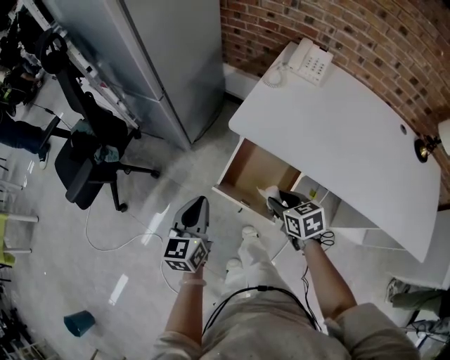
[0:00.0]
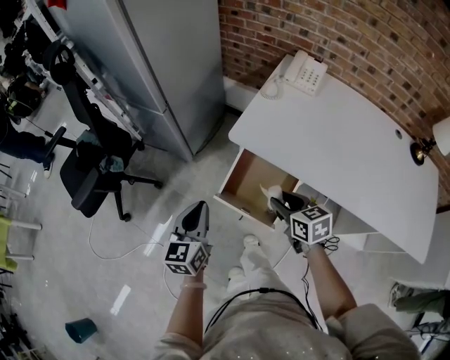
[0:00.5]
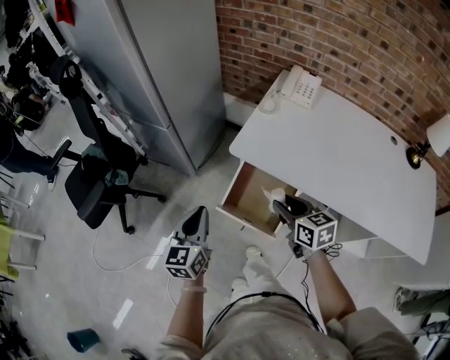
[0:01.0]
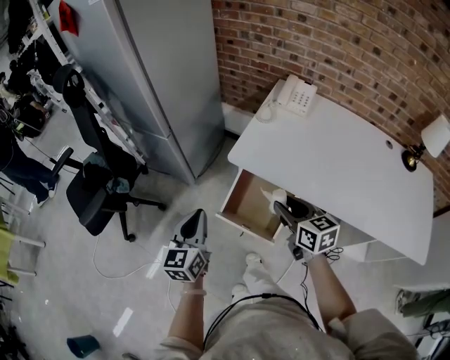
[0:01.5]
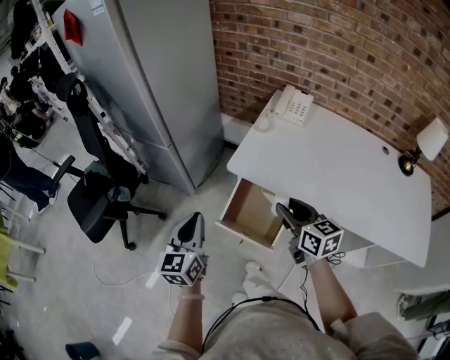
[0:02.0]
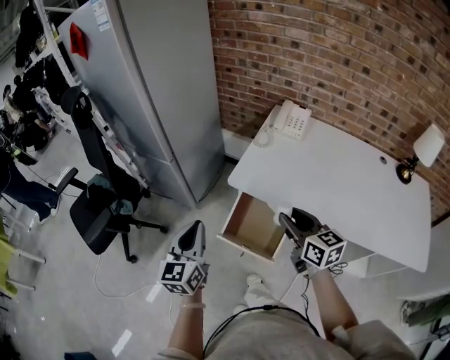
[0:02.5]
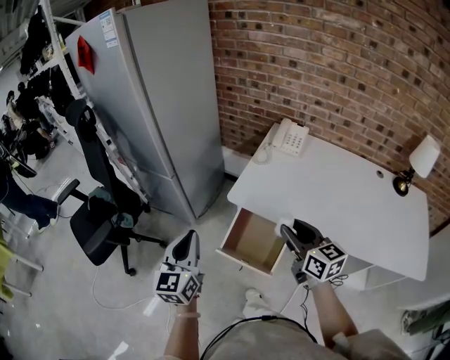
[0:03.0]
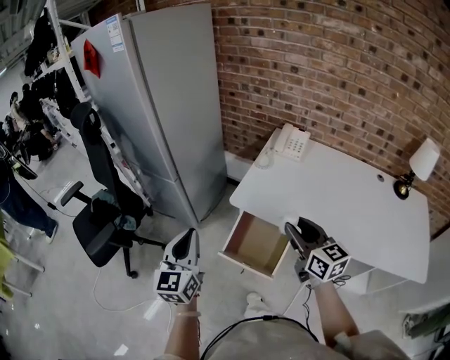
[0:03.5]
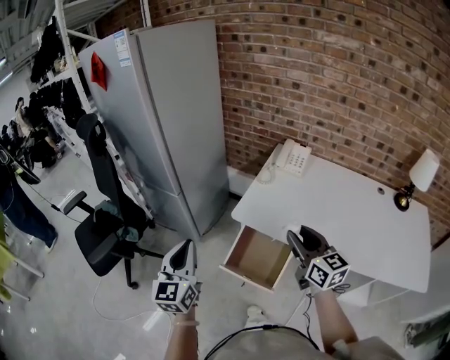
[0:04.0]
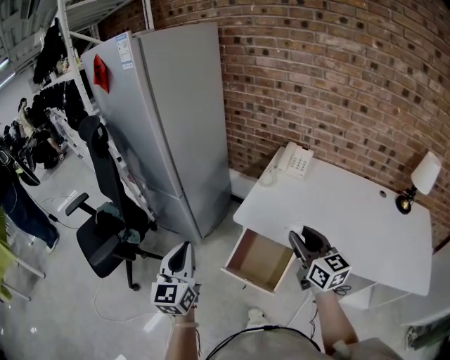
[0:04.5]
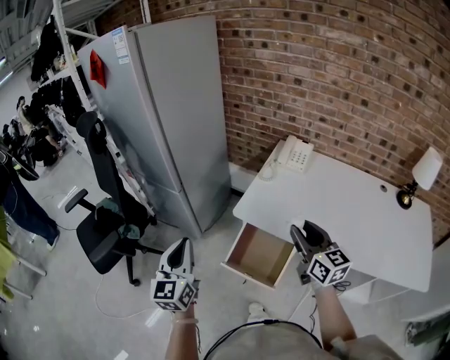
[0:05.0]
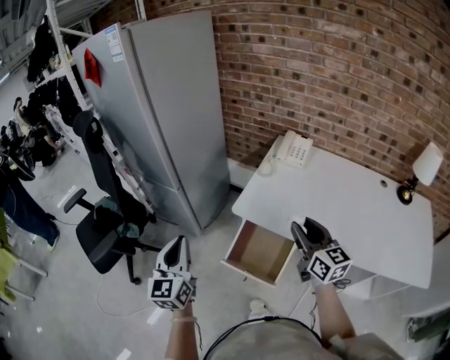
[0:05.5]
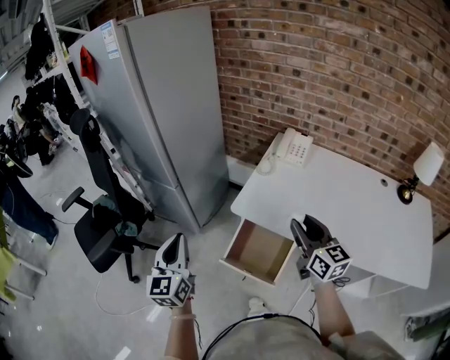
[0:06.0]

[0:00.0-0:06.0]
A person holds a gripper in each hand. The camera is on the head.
0:00.0 to 0:02.0: The left gripper moves upward, about 10 cm. Meanwhile the right gripper is displaced upward by approximately 20 cm, and turns by approximately 30 degrees.
0:02.0 to 0:04.0: The grippers both shift upward by about 10 cm.
0:04.0 to 0:06.0: The grippers make only small movements.

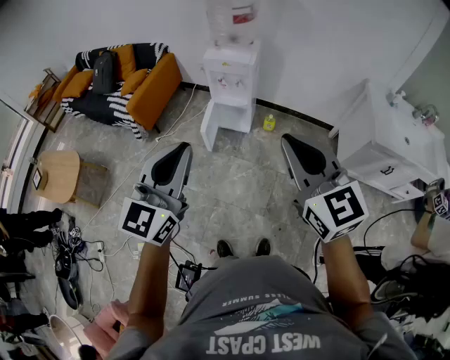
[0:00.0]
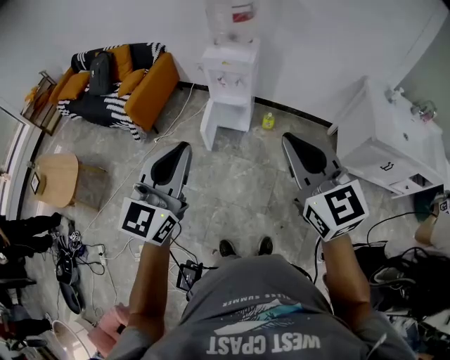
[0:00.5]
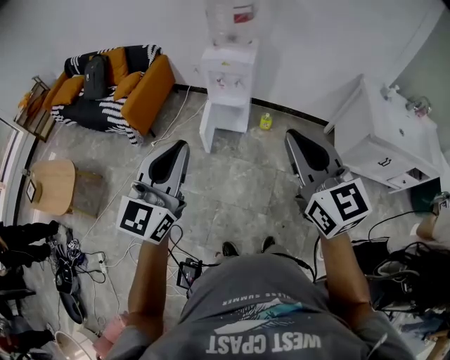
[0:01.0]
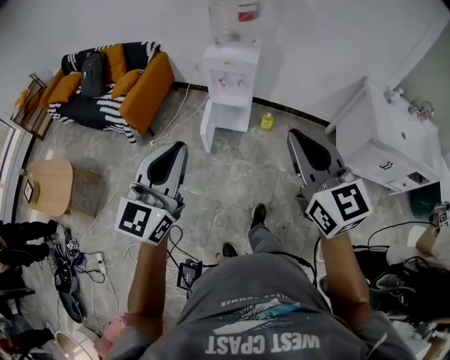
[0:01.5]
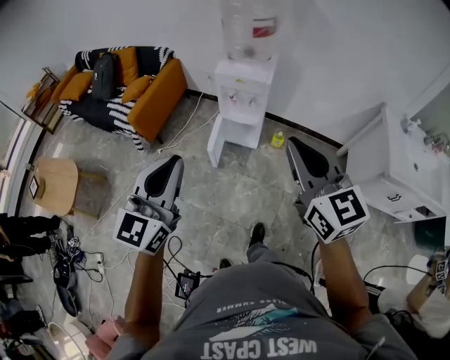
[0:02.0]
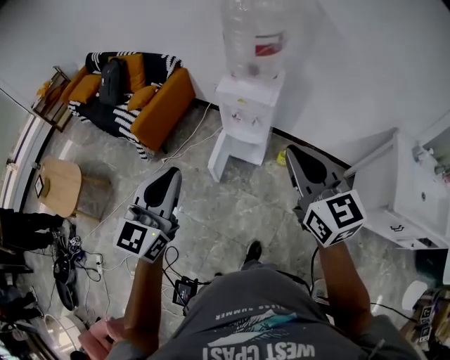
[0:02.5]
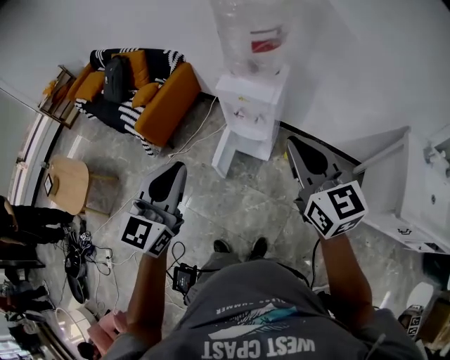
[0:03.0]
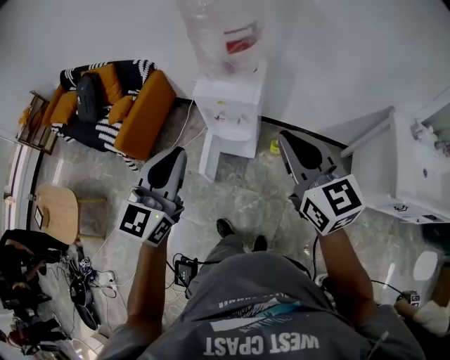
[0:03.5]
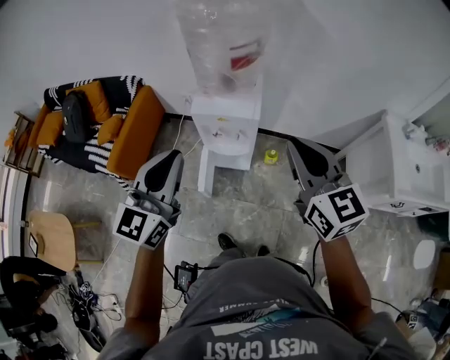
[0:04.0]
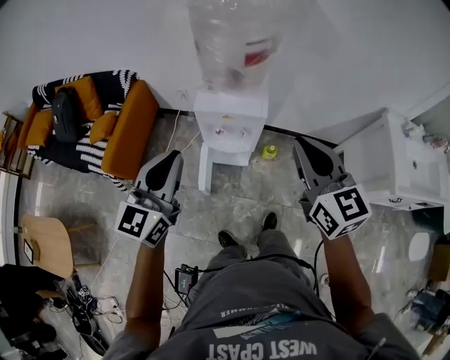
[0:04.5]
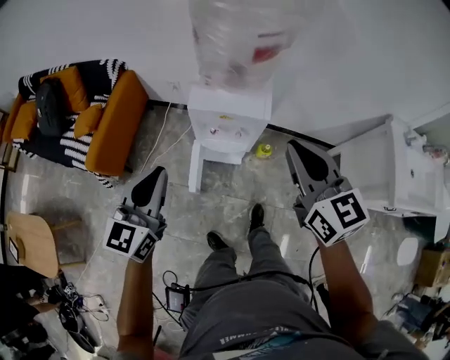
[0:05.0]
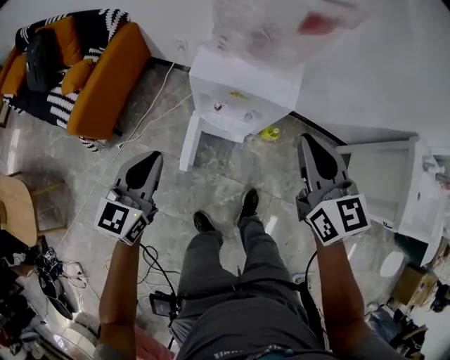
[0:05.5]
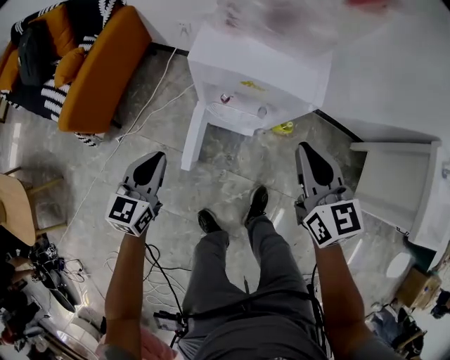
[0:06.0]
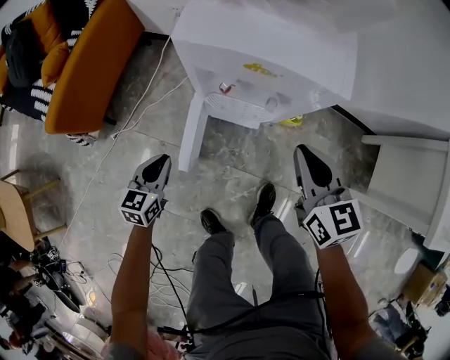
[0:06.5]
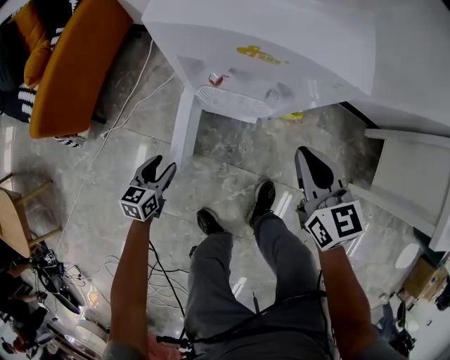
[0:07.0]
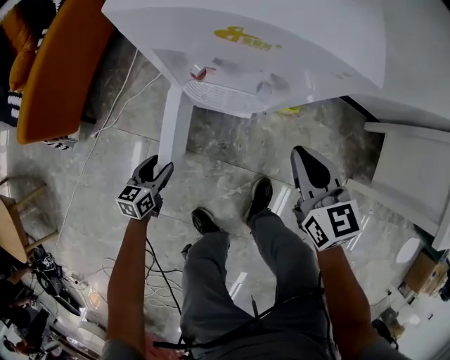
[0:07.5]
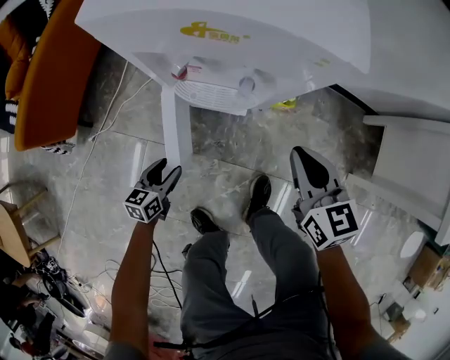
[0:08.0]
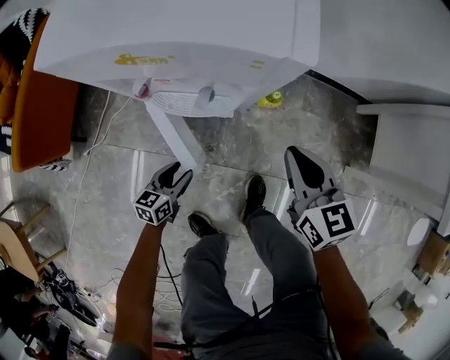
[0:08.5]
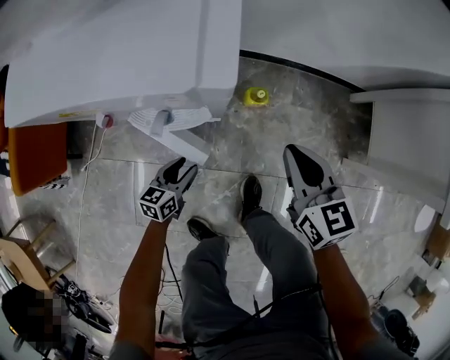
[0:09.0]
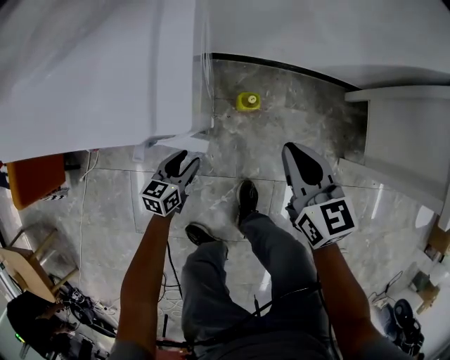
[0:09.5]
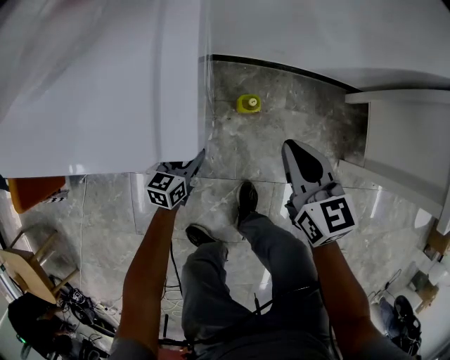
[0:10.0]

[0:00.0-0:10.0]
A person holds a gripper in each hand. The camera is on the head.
0:00.0 to 0:02.0: The right gripper is displaced forward by about 15 cm, while the left gripper heads forward and to the left, covering about 15 cm.
0:02.0 to 0:04.0: The two grippers go roughly 25 cm forward.
0:04.0 to 0:06.0: The right gripper goes about 35 cm downward and forward, while the left gripper heads downward, covering about 40 cm, and swivels approximately 30 degrees.
0:06.0 to 0:08.0: The left gripper shifts roughly 35 cm downward, swivels some 20 degrees, and opens, while the right gripper is displaced downward by approximately 20 cm.
0:08.0 to 0:10.0: The left gripper shifts some 25 cm forward and to the right, while the right gripper moves to the right and forward, some 15 cm.

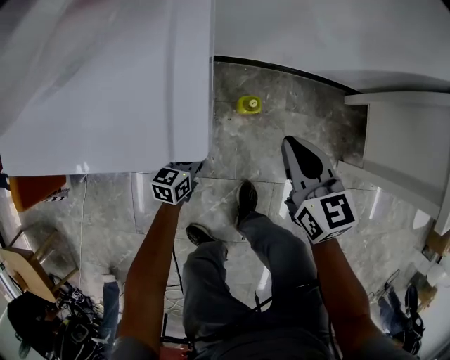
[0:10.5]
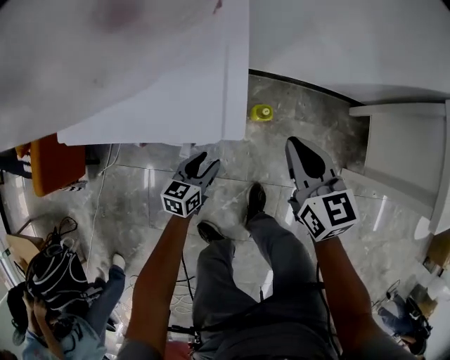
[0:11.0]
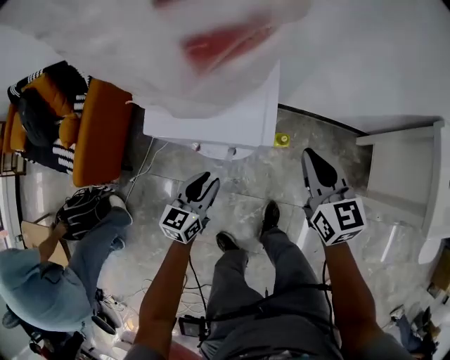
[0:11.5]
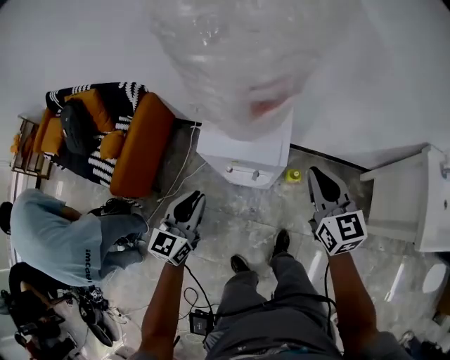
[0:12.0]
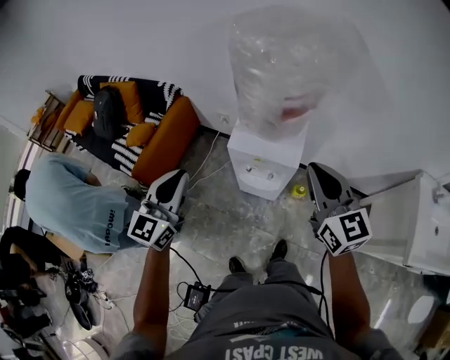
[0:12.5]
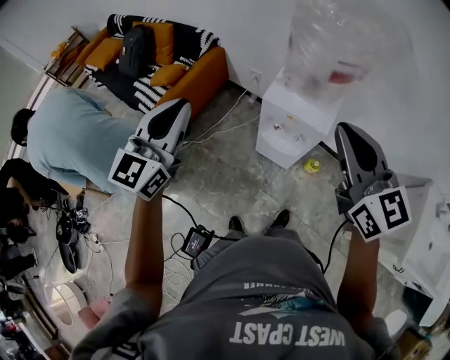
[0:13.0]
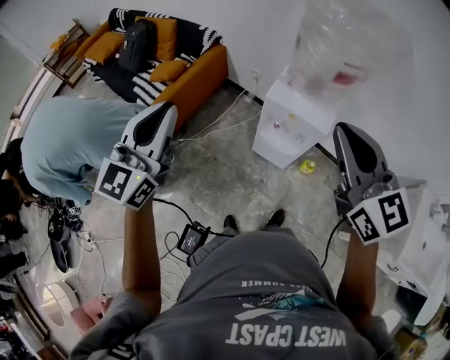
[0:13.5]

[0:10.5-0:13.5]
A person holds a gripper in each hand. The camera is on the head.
0:10.5 to 0:12.0: The grippers both shift upward by about 40 cm. The left gripper rotates some 30 degrees, and closes.
0:12.0 to 0:13.5: The grippers both shift upward, to the left and backward by about 35 cm. The right gripper swivels approximately 30 degrees. Meanwhile the left gripper turns by some 30 degrees.

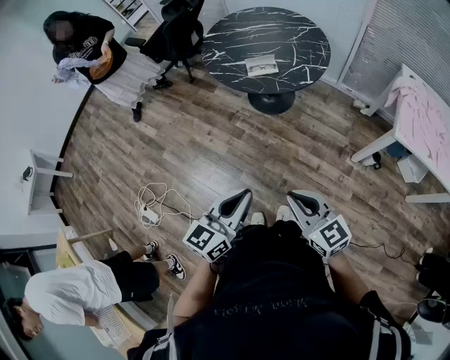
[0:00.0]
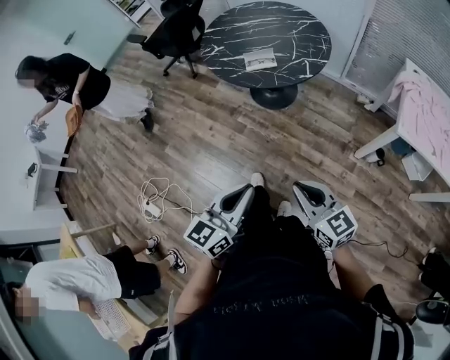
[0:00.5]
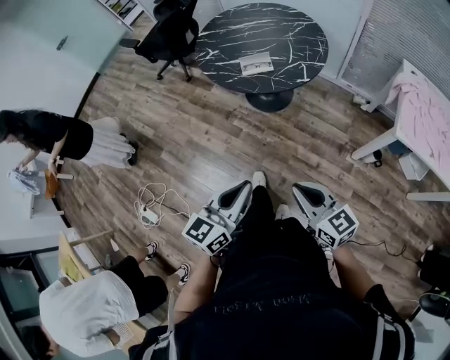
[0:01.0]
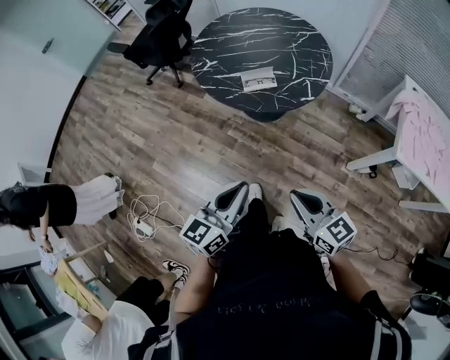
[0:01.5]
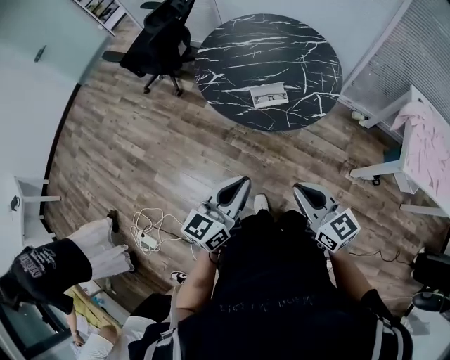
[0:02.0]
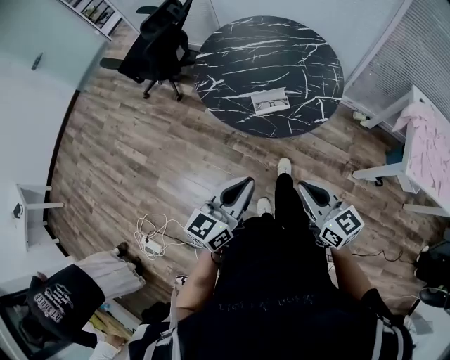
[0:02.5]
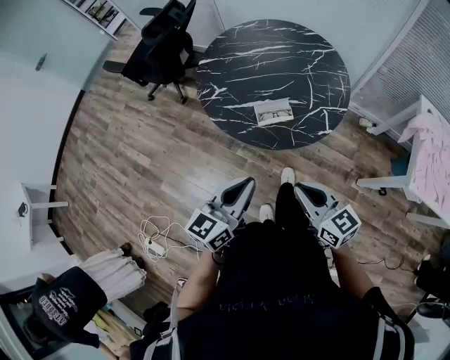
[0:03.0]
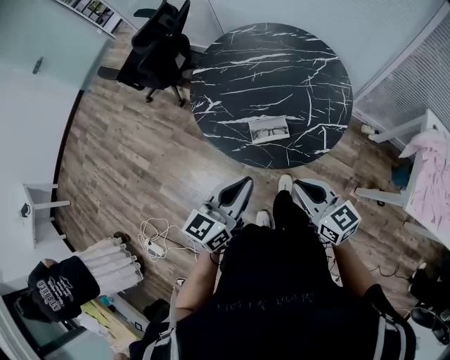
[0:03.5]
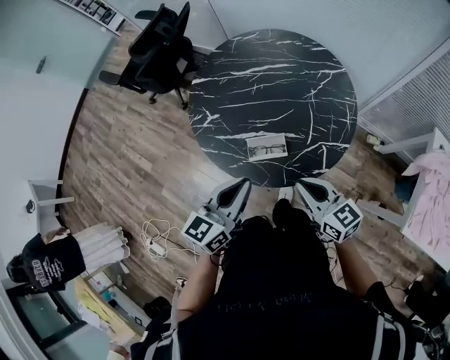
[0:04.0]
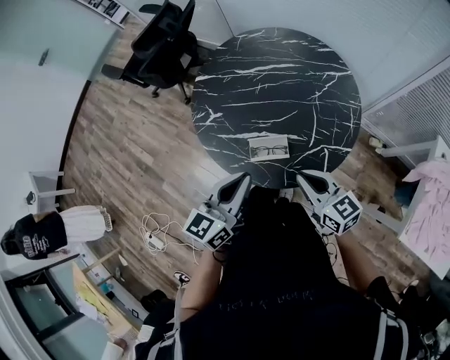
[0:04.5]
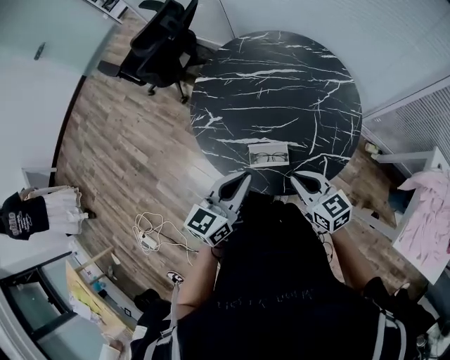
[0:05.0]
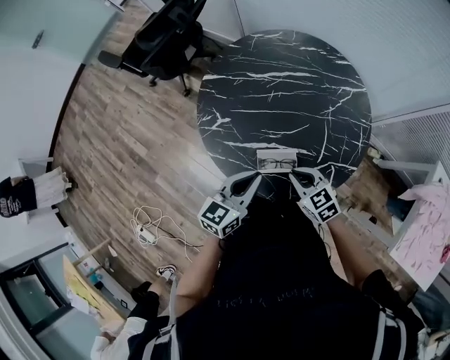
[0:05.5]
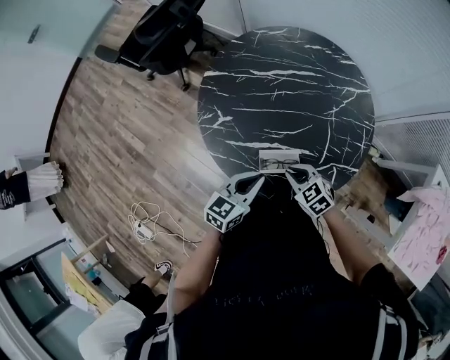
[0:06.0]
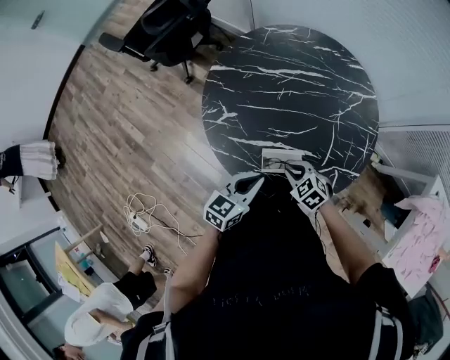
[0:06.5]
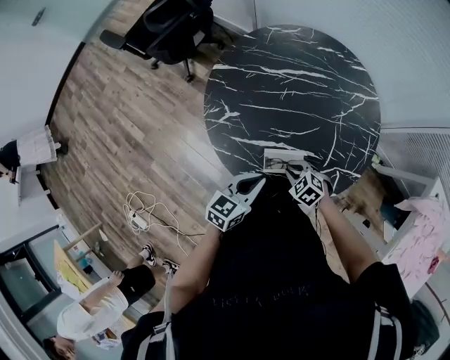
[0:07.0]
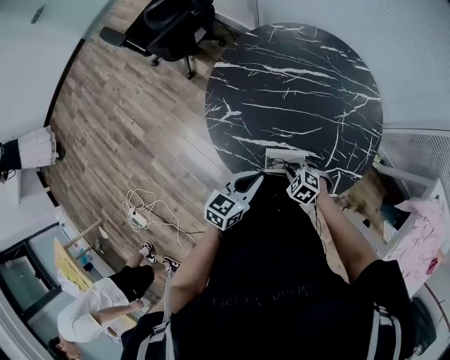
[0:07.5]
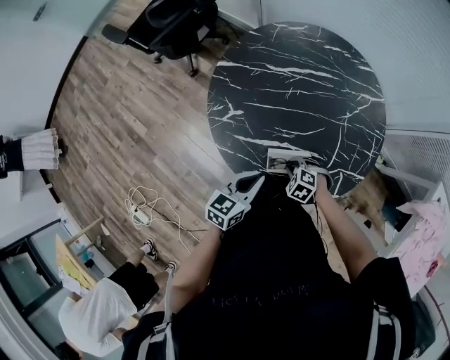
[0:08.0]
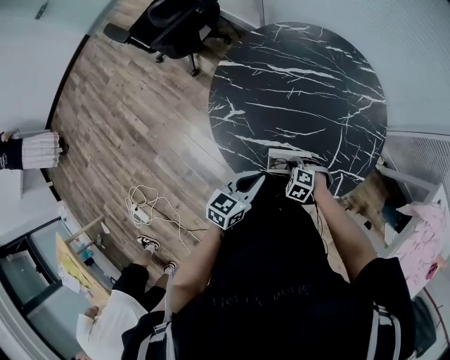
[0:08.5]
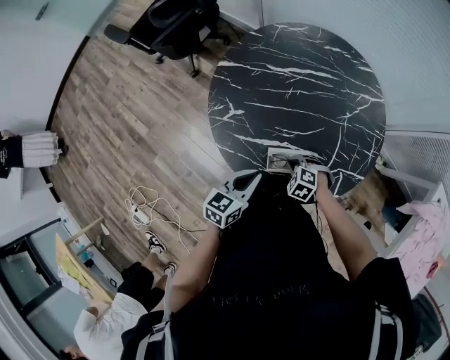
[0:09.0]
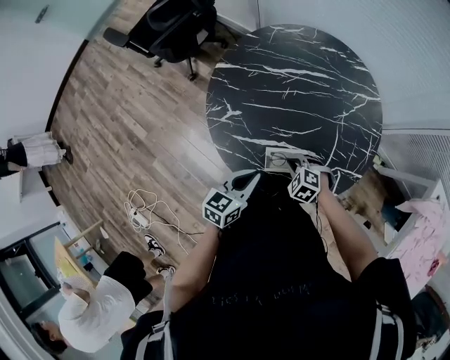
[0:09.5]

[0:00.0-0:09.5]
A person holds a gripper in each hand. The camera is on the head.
0:00.0 to 0:02.0: Both grippers move forward, approximately 25 cm.
0:02.0 to 0:04.0: Both grippers move forward, approximately 25 cm.
0:04.0 to 0:05.5: The right gripper shifts some 15 cm downward and forward, and changes its angle by about 30 degrees. The left gripper goes about 10 cm forward and downward.
0:05.5 to 0:07.5: The left gripper is displaced downward by some 10 cm. Meanwhile the right gripper heads downward, covering approximately 10 cm, and rotates about 40 degrees.
0:07.5 to 0:09.5: The grippers move only a little.
